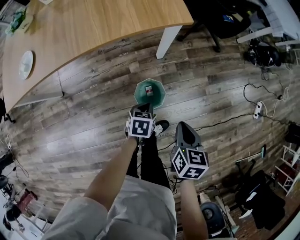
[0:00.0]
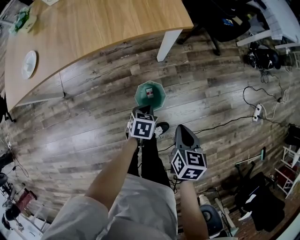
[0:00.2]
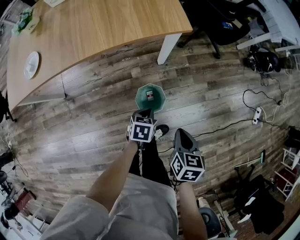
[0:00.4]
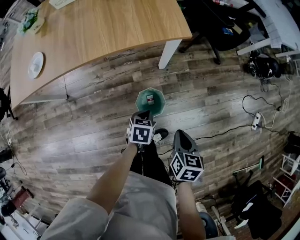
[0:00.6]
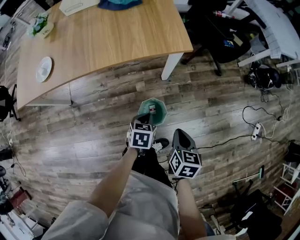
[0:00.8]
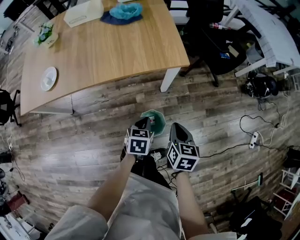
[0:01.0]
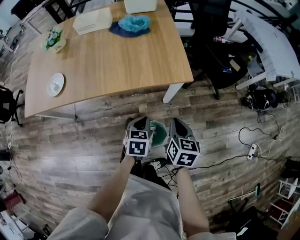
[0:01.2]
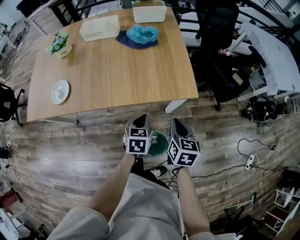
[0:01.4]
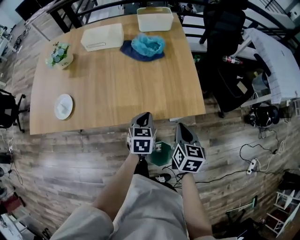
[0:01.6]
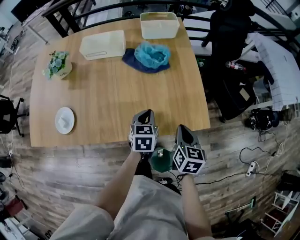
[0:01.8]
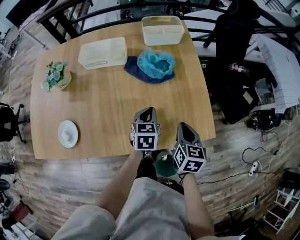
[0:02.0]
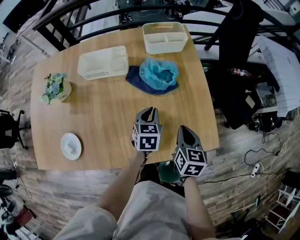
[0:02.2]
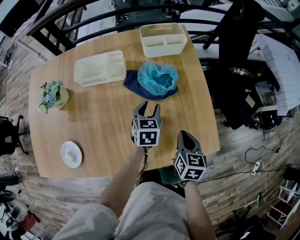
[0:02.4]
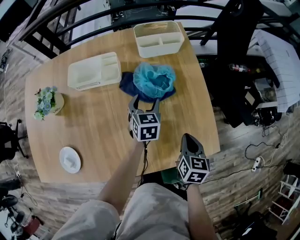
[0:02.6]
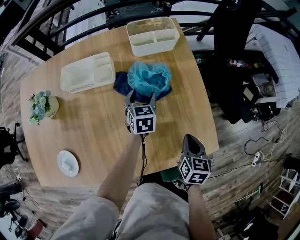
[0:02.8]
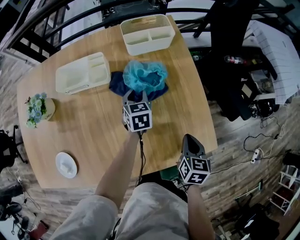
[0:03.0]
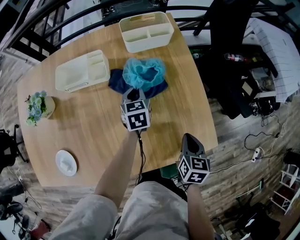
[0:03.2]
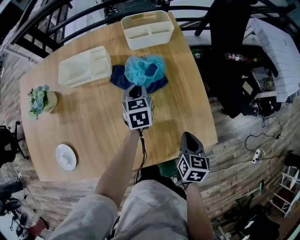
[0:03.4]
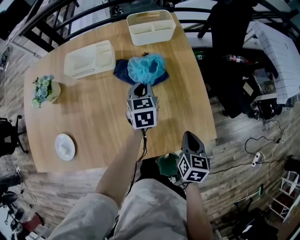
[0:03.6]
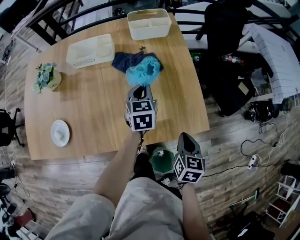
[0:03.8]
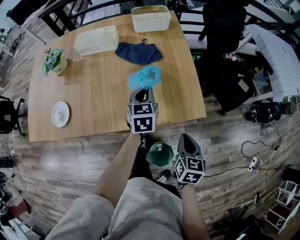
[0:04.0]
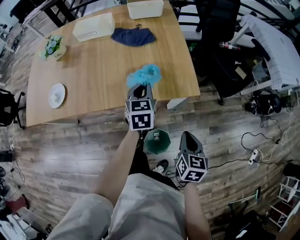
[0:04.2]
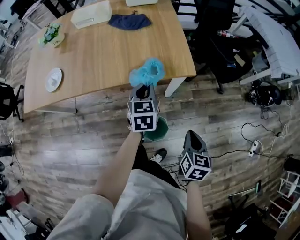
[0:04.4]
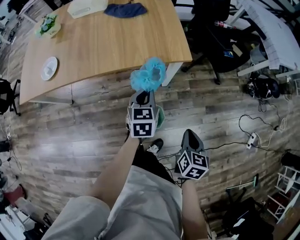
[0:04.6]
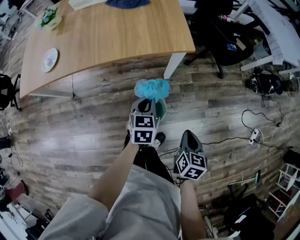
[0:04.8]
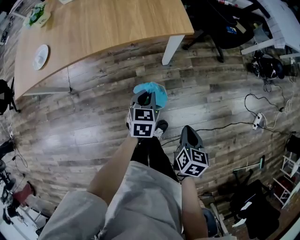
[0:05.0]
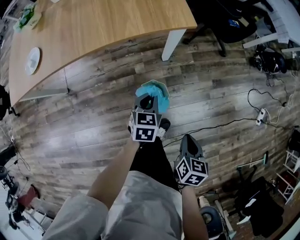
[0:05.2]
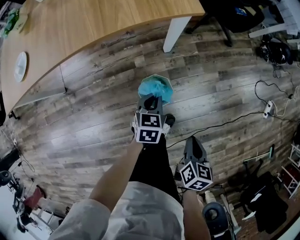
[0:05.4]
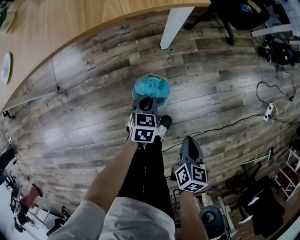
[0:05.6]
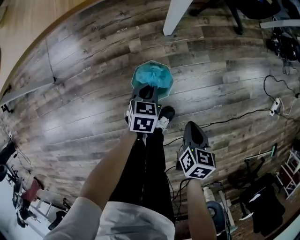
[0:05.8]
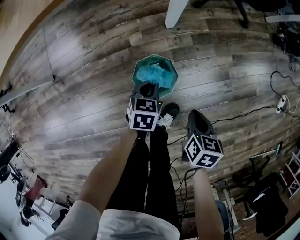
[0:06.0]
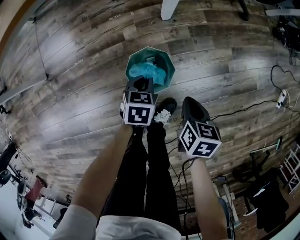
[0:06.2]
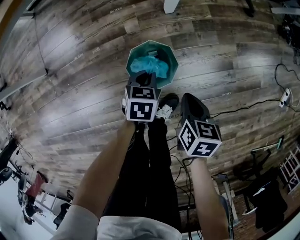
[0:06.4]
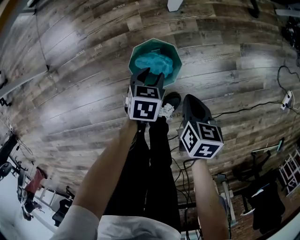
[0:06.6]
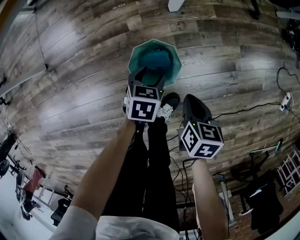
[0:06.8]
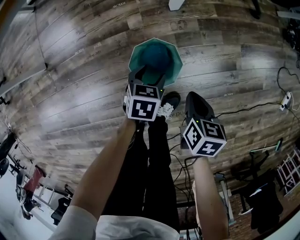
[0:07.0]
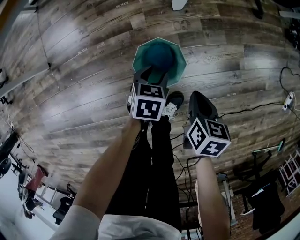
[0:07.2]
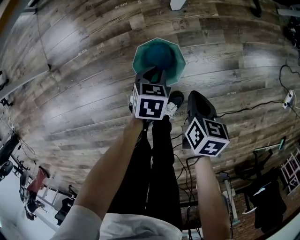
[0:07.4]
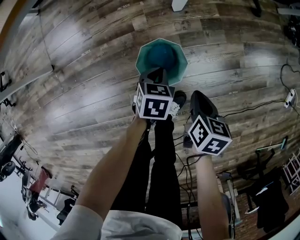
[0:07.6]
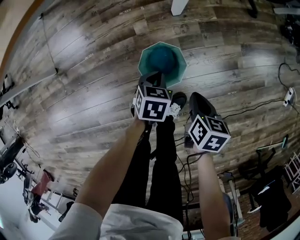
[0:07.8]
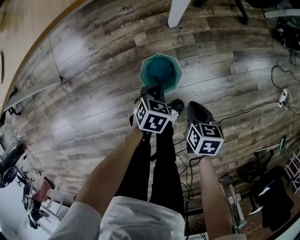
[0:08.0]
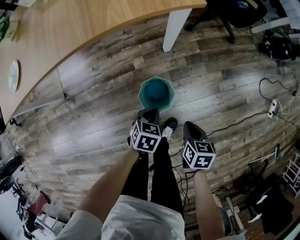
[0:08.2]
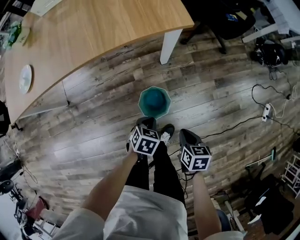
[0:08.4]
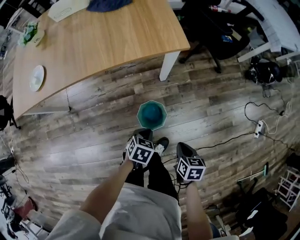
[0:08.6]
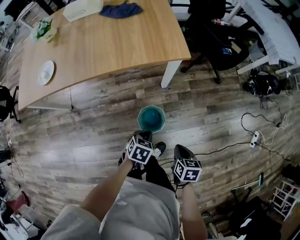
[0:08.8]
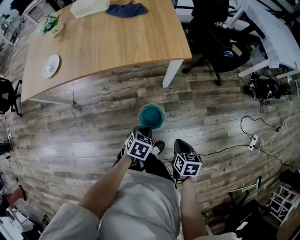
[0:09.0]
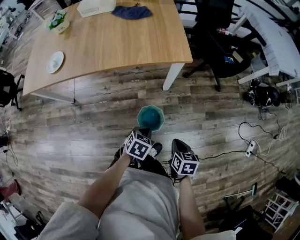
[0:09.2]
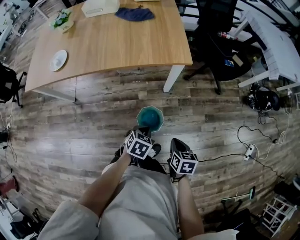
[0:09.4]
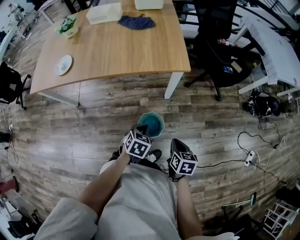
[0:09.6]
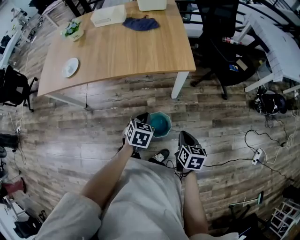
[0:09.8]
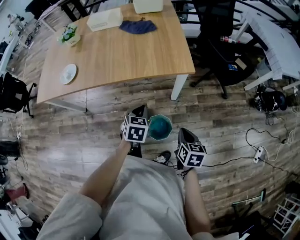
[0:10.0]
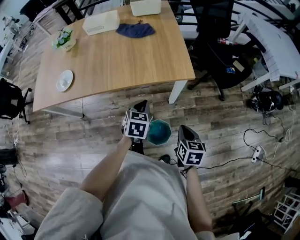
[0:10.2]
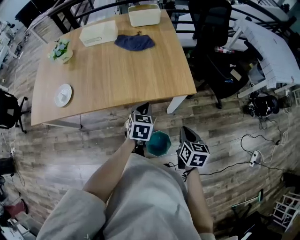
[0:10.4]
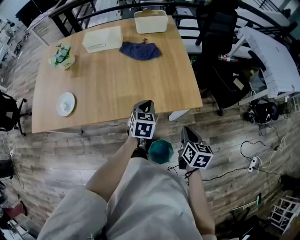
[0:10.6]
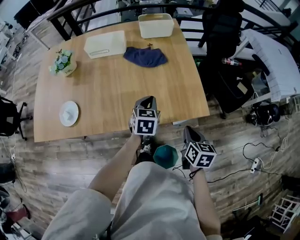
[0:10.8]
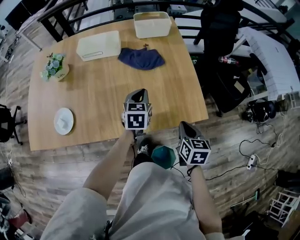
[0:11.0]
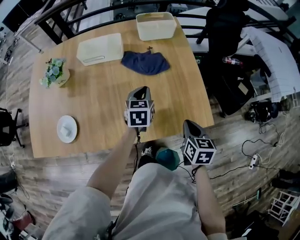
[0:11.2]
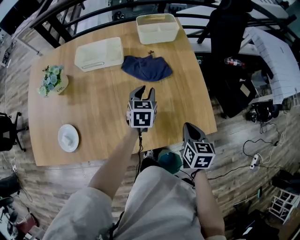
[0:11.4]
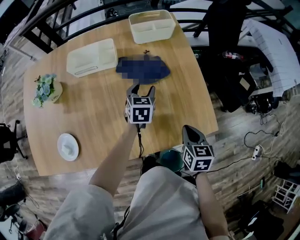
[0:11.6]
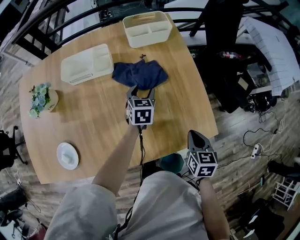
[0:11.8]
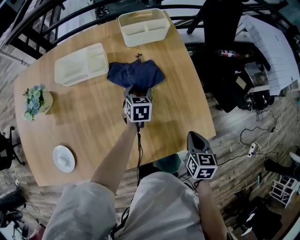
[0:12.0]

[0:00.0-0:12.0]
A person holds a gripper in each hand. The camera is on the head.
0:00.0 to 0:01.6: The right gripper goes approximately 35 cm forward and to the left, while the left gripper moves forward, upward and to the left, some 40 cm, and changes its angle by approximately 30 degrees.
0:01.6 to 0:03.0: The right gripper travels forward by about 20 cm; the left gripper shifts some 35 cm forward, and opens, then closes once more.
0:03.0 to 0:04.4: The pair of grippers is taken backward and to the right, about 40 cm.
0:04.4 to 0:06.0: The left gripper heads downward and backward, covering about 50 cm, and changes its angle by approximately 30 degrees. Meanwhile the right gripper travels downward by some 30 cm, and turns by roughly 20 degrees.
0:06.0 to 0:07.6: The left gripper opens and closes again. Meanwhile the right gripper ends up some 5 cm from where it was.
0:07.6 to 0:09.0: The two grippers go about 30 cm upward.
0:09.0 to 0:10.4: The grippers both shift forward and upward by some 25 cm. The left gripper changes its angle by about 30 degrees.
0:10.4 to 0:12.0: The right gripper heads forward and to the left, covering roughly 25 cm; the left gripper shifts some 35 cm forward, and opens its fingers.

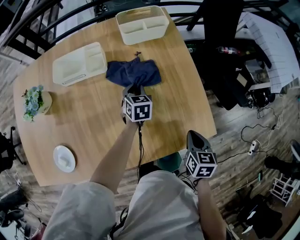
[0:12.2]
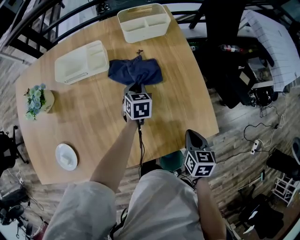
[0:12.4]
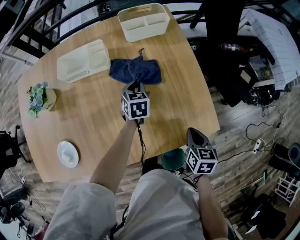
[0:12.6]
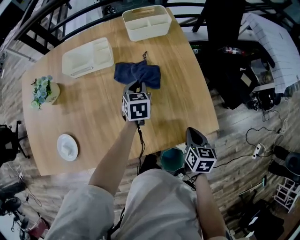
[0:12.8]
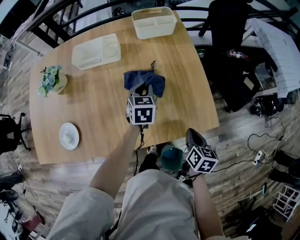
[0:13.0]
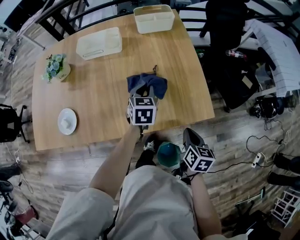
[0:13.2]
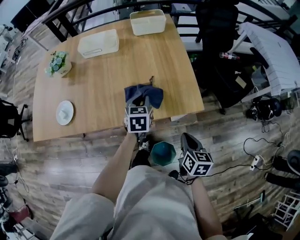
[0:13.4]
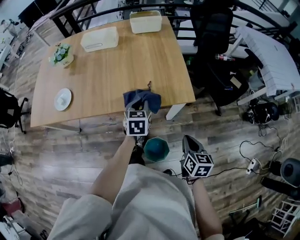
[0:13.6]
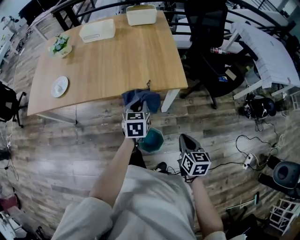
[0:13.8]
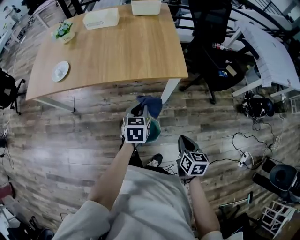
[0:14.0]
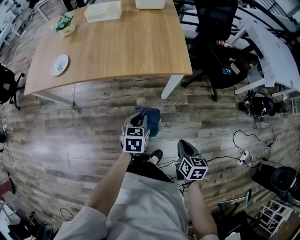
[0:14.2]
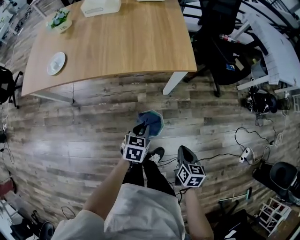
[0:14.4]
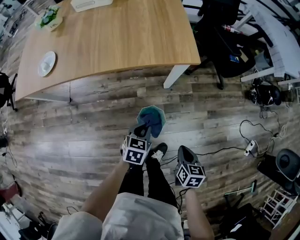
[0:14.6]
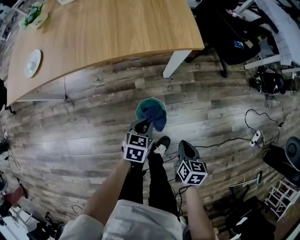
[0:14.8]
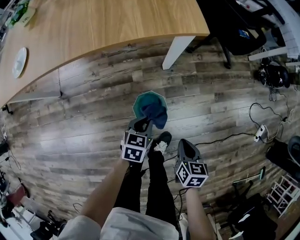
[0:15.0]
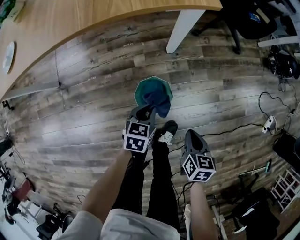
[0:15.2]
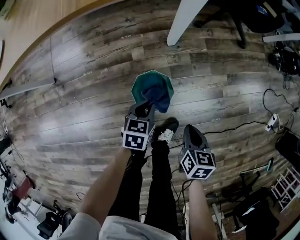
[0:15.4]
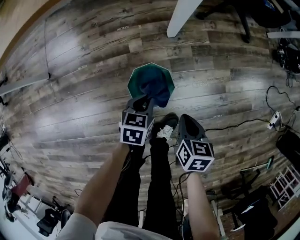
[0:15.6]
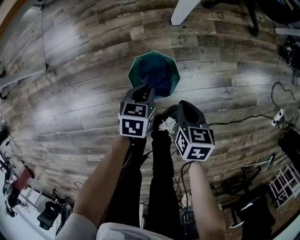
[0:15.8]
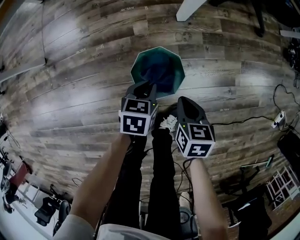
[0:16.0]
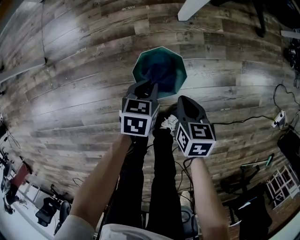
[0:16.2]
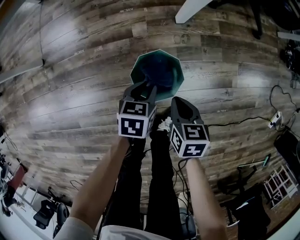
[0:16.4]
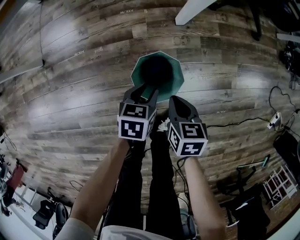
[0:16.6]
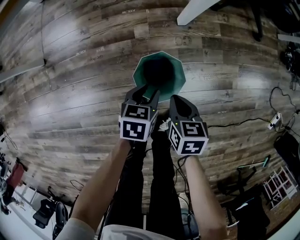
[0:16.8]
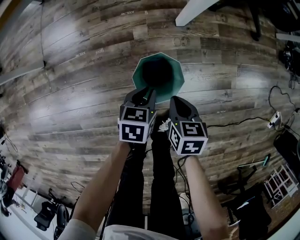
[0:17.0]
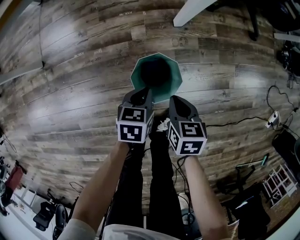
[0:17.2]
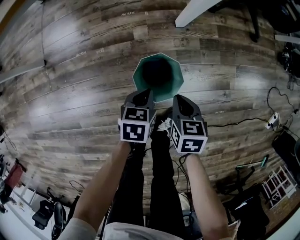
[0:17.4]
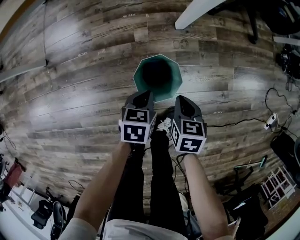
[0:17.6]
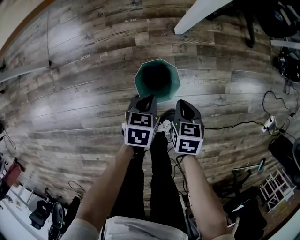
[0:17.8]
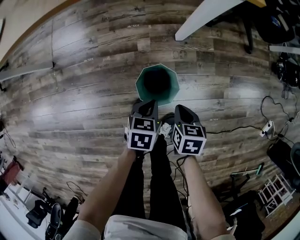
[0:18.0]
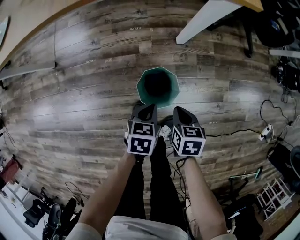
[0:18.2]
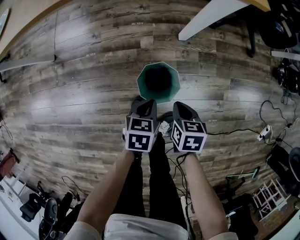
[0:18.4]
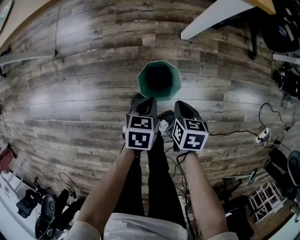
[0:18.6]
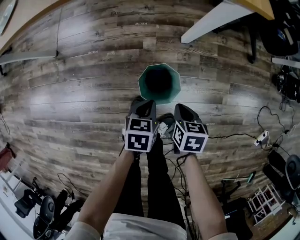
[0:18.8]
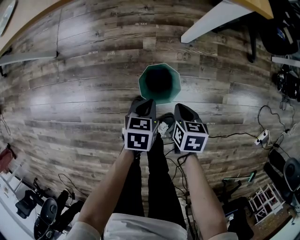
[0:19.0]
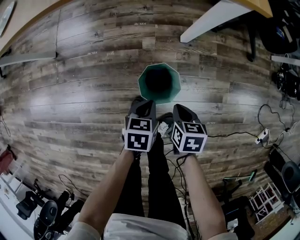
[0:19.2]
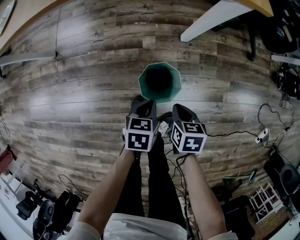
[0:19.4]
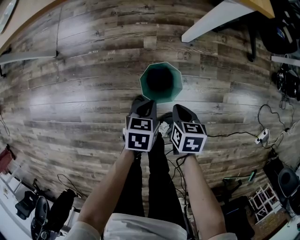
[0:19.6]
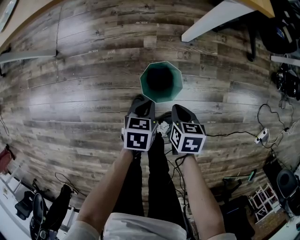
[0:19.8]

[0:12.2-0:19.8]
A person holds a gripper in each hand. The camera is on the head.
0:12.2 to 0:13.8: The right gripper is displaced backward and to the right by about 35 cm; the left gripper shifts some 40 cm backward.
0:13.8 to 0:15.2: Both grippers travel together downward and backward, roughly 35 cm. The left gripper turns by approximately 30 degrees. The right gripper swivels some 20 degrees.
0:15.2 to 0:16.8: The right gripper heads downward and to the left, covering roughly 20 cm. Meanwhile the left gripper moves downward, about 15 cm.
0:16.8 to 0:18.2: The grippers both shift upward by some 10 cm. The left gripper closes up.
0:18.2 to 0:19.8: The grippers make only small movements.

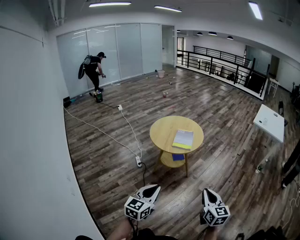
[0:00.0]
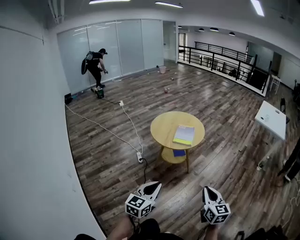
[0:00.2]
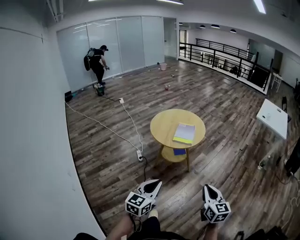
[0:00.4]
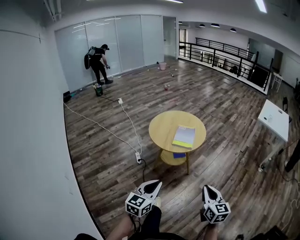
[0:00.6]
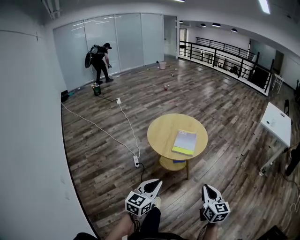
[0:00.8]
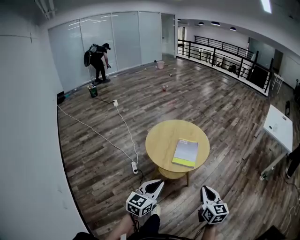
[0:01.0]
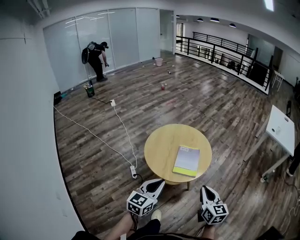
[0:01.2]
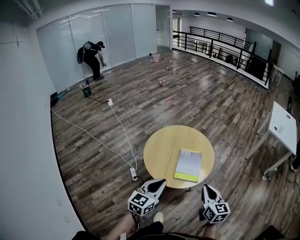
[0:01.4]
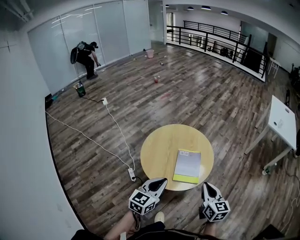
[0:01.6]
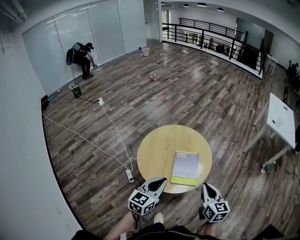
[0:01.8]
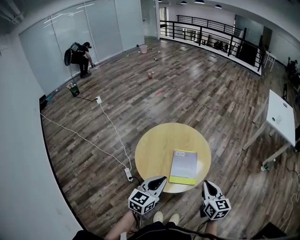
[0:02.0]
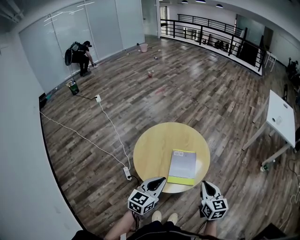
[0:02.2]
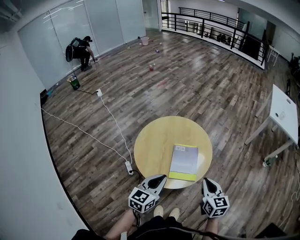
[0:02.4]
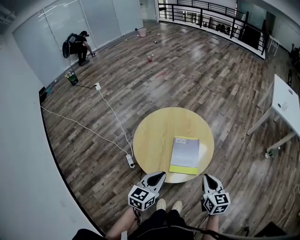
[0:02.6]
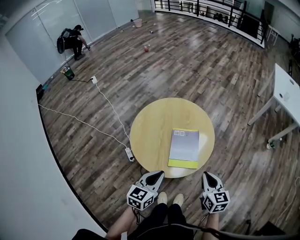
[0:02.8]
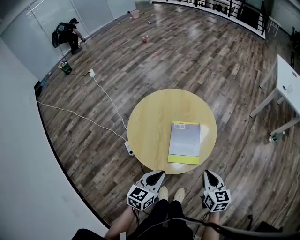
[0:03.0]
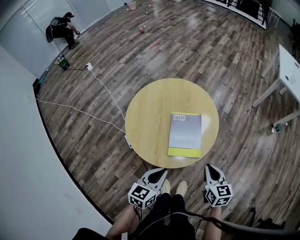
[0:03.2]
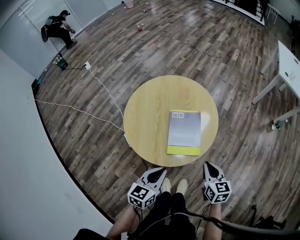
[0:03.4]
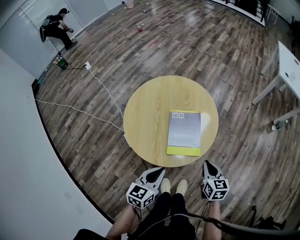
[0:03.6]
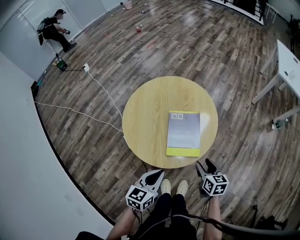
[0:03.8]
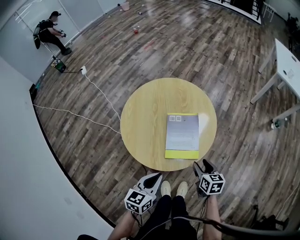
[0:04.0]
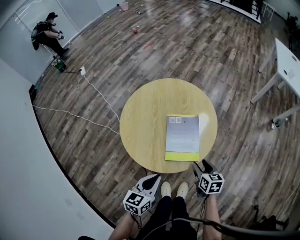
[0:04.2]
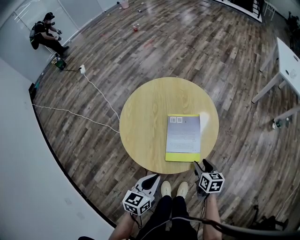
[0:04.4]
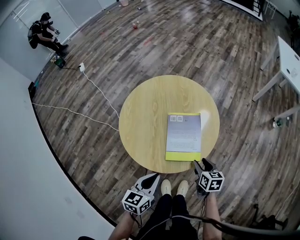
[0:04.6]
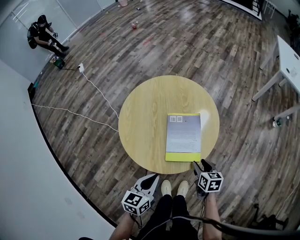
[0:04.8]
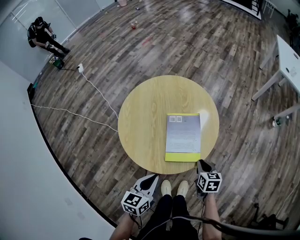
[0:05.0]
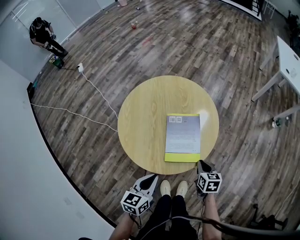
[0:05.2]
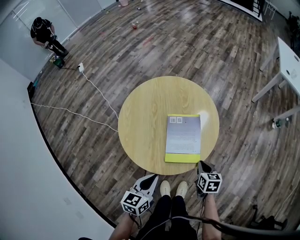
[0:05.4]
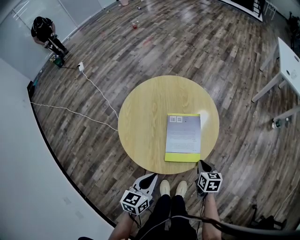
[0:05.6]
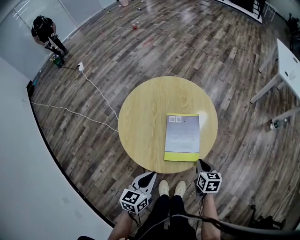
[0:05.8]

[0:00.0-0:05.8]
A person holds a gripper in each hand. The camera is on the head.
0:00.0 to 0:01.4: The two grippers travel together, forward, roughly 40 cm.
0:01.4 to 0:02.8: Both grippers move downward and forward, some 10 cm.
0:02.8 to 0:04.4: The left gripper moves downward, roughly 10 cm. The right gripper goes approximately 20 cm downward, changes its angle by approximately 20 degrees, and opens its fingers.
0:04.4 to 0:05.8: The right gripper closes up.
